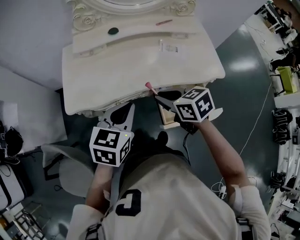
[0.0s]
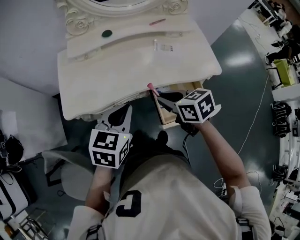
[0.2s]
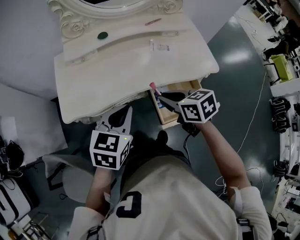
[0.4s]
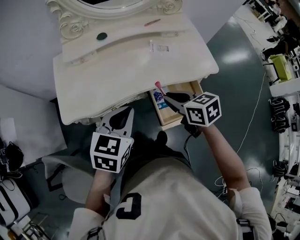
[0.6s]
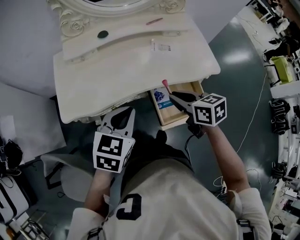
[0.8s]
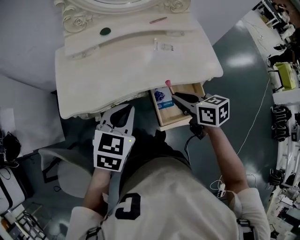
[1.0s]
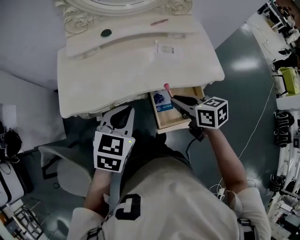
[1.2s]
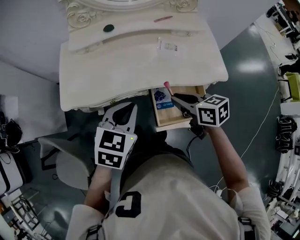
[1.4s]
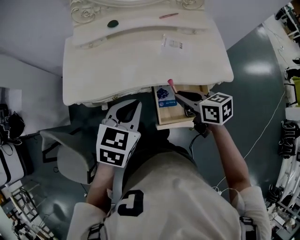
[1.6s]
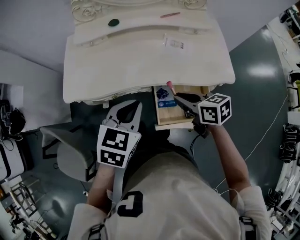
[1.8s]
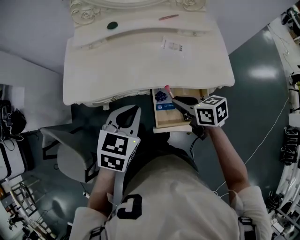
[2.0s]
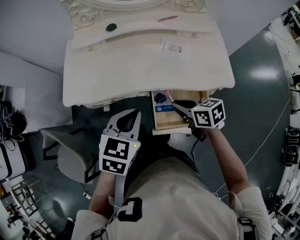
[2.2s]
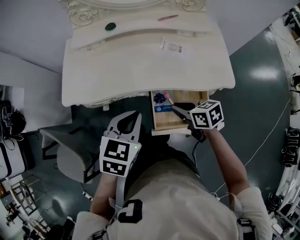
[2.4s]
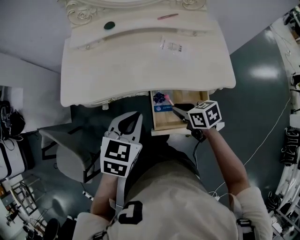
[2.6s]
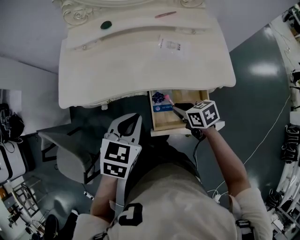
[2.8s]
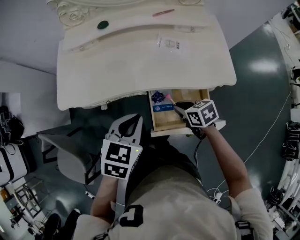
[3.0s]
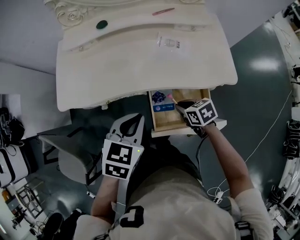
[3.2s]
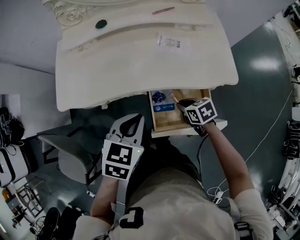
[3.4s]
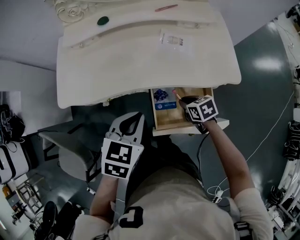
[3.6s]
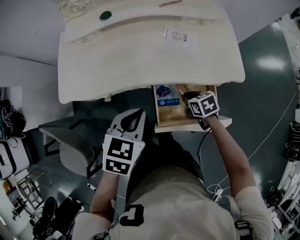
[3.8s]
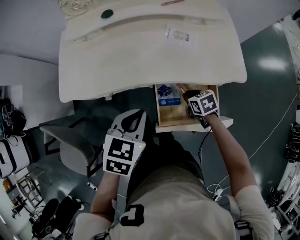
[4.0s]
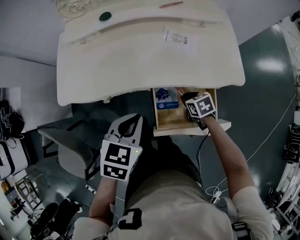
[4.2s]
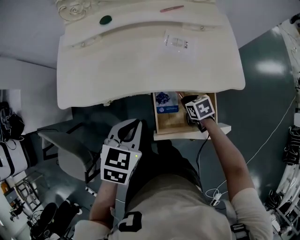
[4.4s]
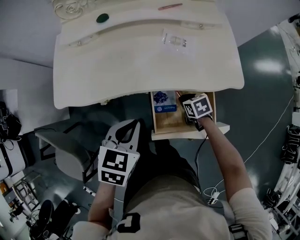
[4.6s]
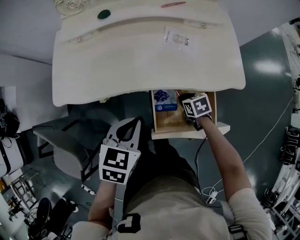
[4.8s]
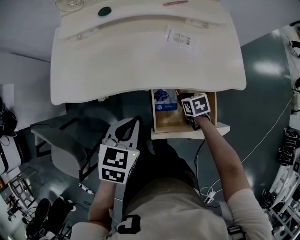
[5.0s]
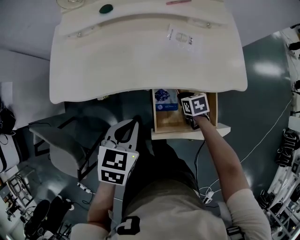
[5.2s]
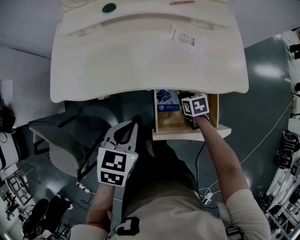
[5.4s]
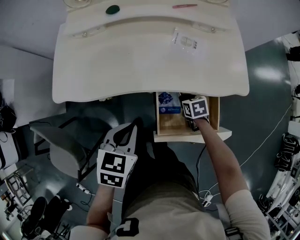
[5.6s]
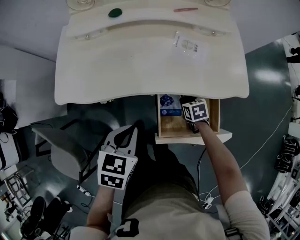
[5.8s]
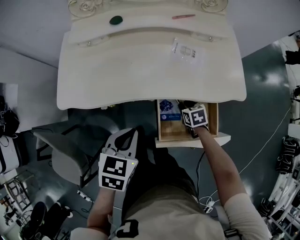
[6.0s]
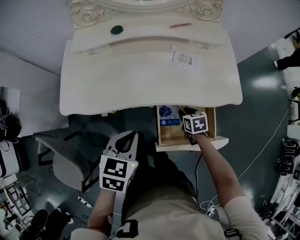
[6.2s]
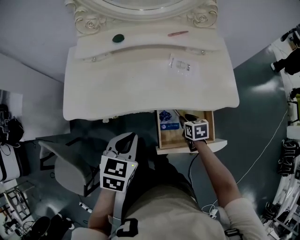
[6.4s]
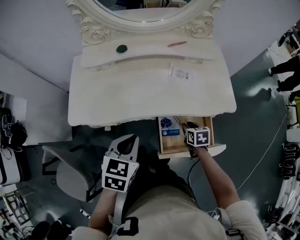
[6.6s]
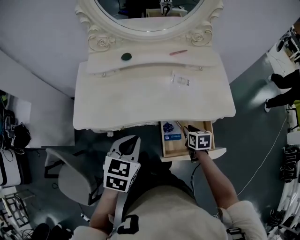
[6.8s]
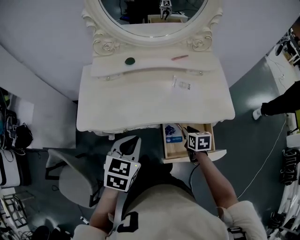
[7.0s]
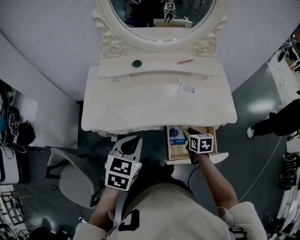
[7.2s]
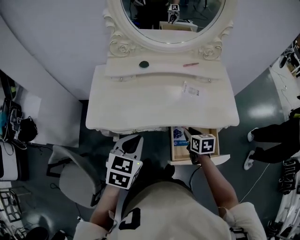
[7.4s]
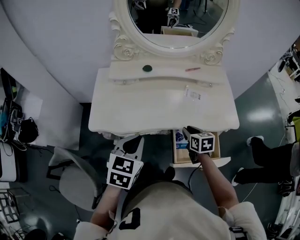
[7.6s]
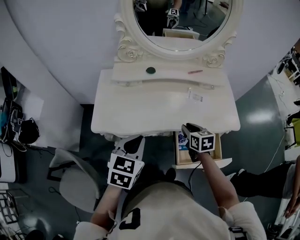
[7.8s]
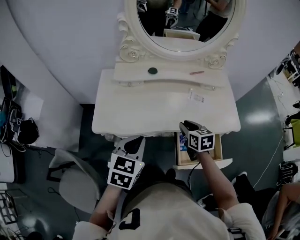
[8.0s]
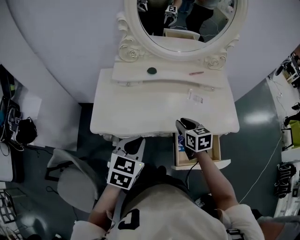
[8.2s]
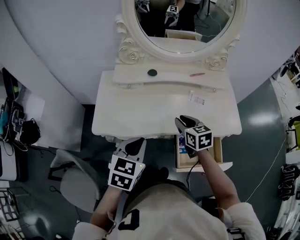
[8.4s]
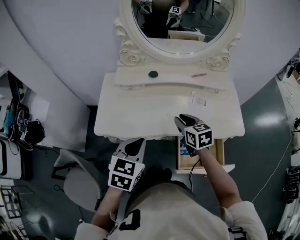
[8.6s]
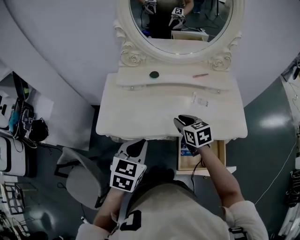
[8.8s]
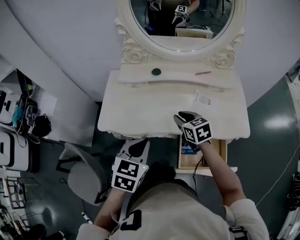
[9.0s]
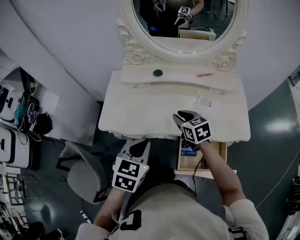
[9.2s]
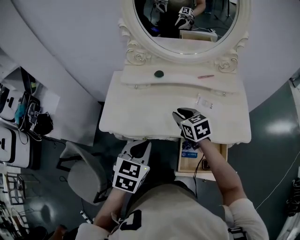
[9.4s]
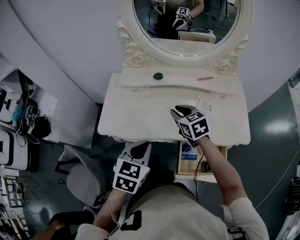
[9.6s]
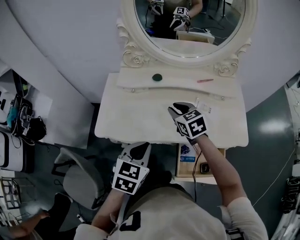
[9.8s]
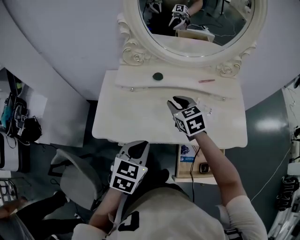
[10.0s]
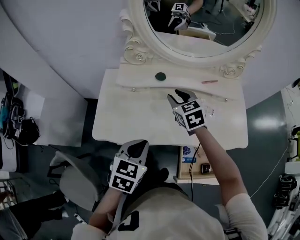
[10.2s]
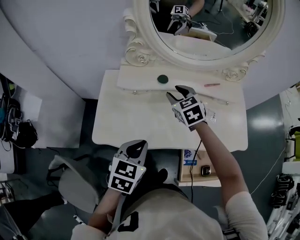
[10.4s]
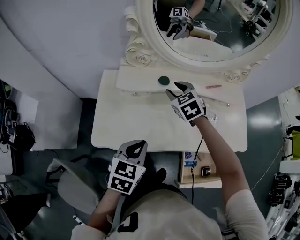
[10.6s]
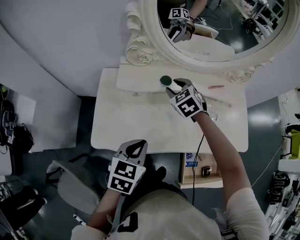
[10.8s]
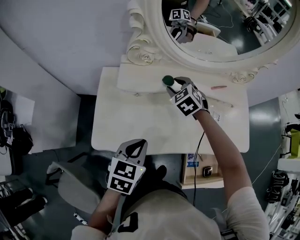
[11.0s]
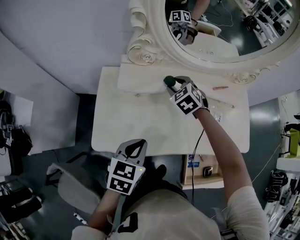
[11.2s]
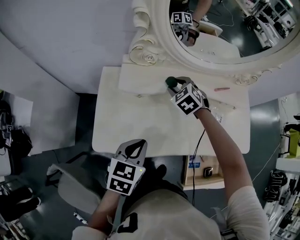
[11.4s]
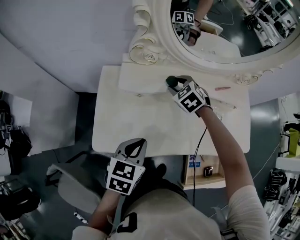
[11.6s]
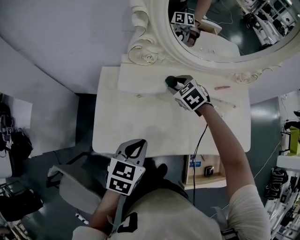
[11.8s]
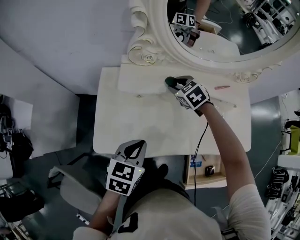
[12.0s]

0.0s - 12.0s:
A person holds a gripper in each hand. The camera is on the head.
0.0s - 1.6s: Both grippers move to the right, roughly 10 cm.
1.6s - 3.0s: The left gripper ends up roughly 5 cm from where it was. The right gripper heads downward, covering roughly 15 cm.
3.0s - 4.4s: The right gripper heads downward, covering roughly 10 cm.
4.4s - 6.0s: The grippers make only small movements.
6.0s - 7.6s: Both grippers travel together upward and to the left, roughly 15 cm.
7.6s - 9.0s: The right gripper shifts about 15 cm upward, to the left and forward, and swivels roughly 20 degrees.
9.0s - 10.4s: The left gripper is displaced forward and to the left by roughly 10 cm. Meanwhile the right gripper shifts some 20 cm forward, and changes its angle by roughly 20 degrees.
10.4s - 12.0s: The right gripper shifts some 10 cm forward and downward. The left gripper is displaced forward and to the left by about 10 cm.

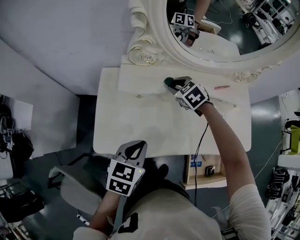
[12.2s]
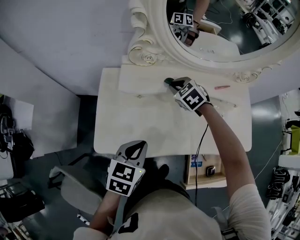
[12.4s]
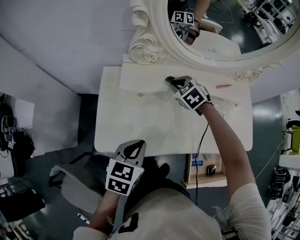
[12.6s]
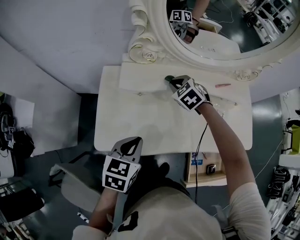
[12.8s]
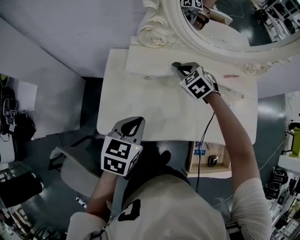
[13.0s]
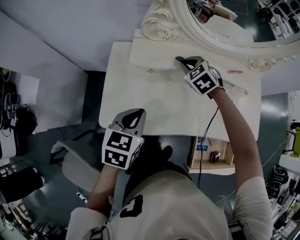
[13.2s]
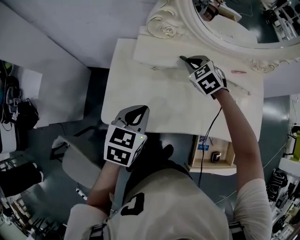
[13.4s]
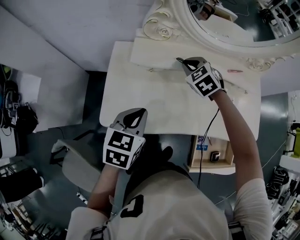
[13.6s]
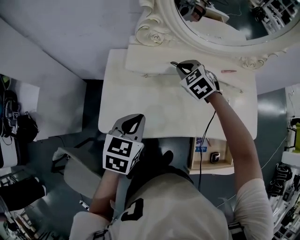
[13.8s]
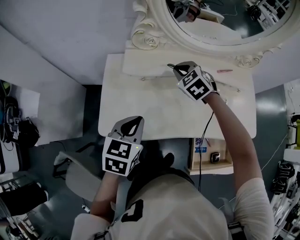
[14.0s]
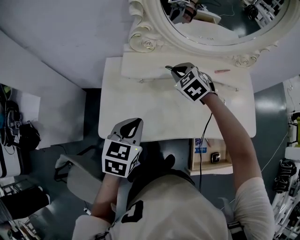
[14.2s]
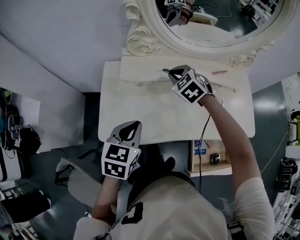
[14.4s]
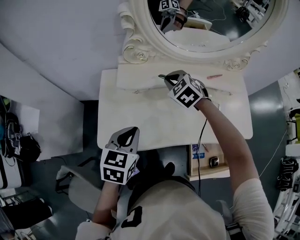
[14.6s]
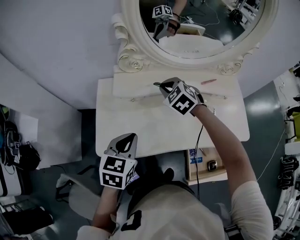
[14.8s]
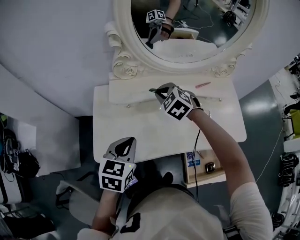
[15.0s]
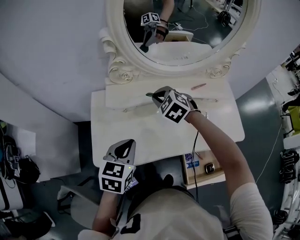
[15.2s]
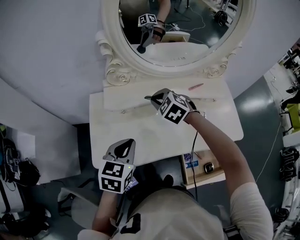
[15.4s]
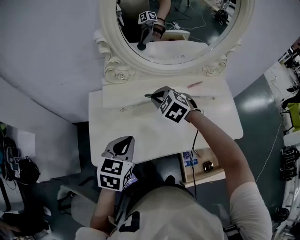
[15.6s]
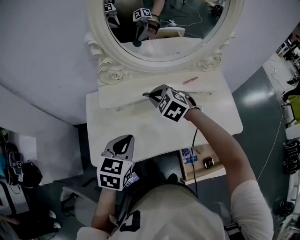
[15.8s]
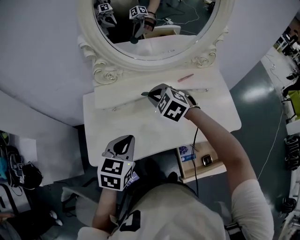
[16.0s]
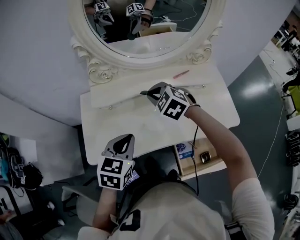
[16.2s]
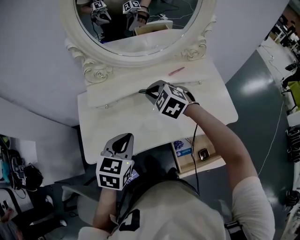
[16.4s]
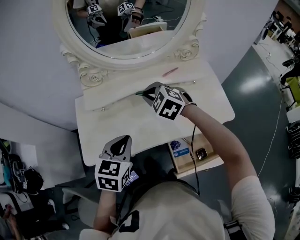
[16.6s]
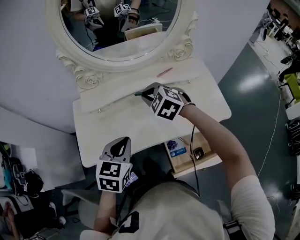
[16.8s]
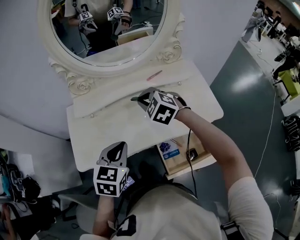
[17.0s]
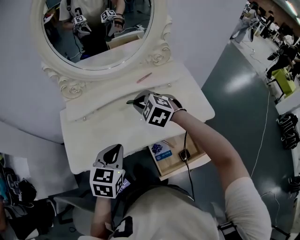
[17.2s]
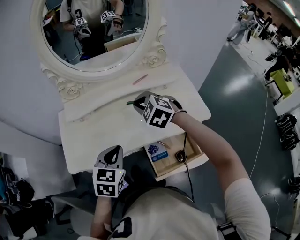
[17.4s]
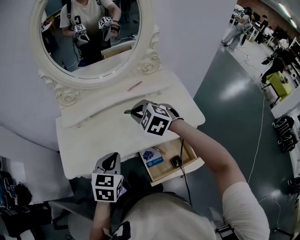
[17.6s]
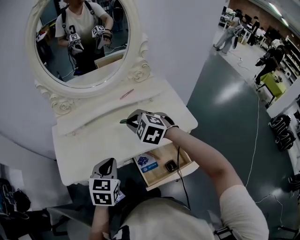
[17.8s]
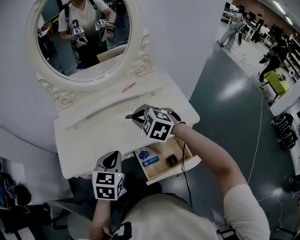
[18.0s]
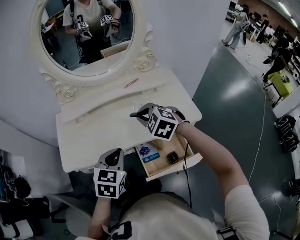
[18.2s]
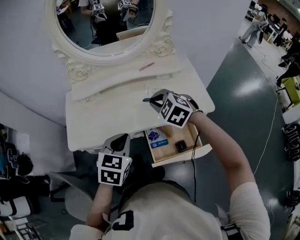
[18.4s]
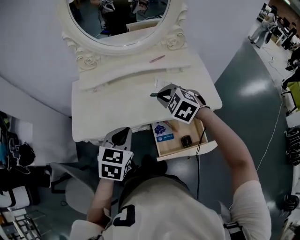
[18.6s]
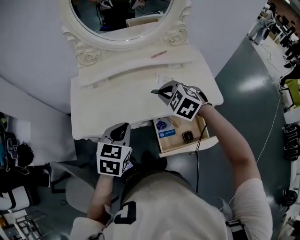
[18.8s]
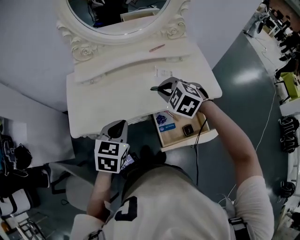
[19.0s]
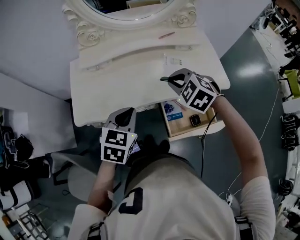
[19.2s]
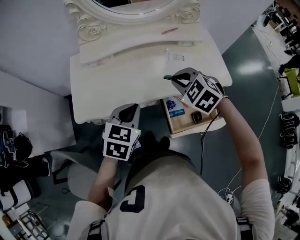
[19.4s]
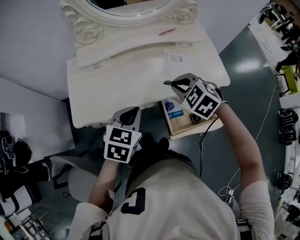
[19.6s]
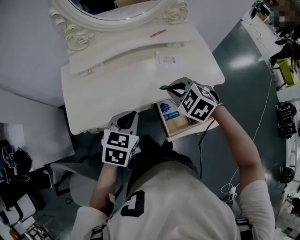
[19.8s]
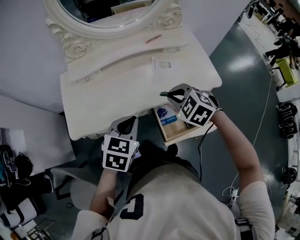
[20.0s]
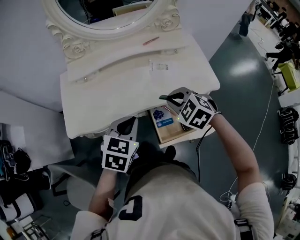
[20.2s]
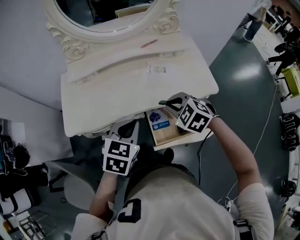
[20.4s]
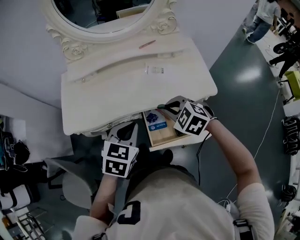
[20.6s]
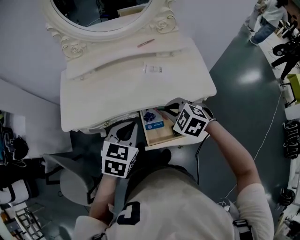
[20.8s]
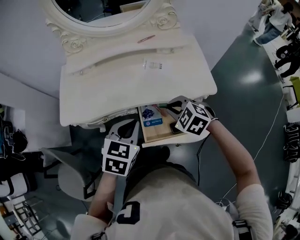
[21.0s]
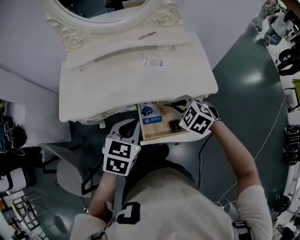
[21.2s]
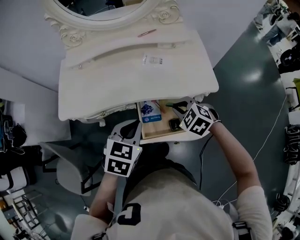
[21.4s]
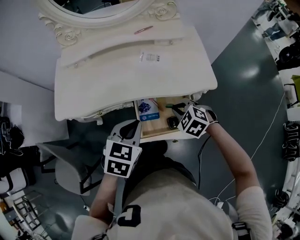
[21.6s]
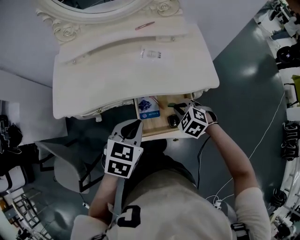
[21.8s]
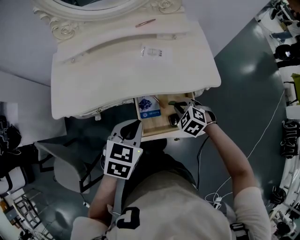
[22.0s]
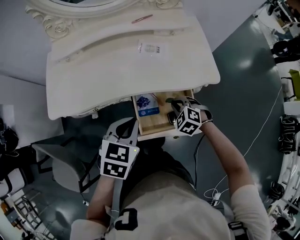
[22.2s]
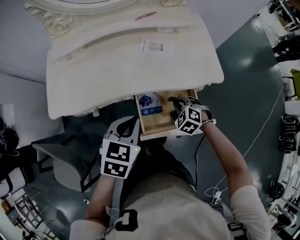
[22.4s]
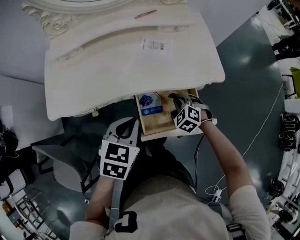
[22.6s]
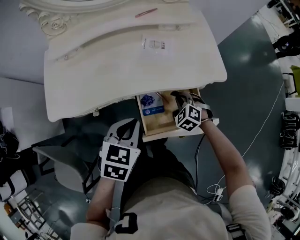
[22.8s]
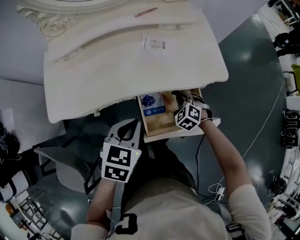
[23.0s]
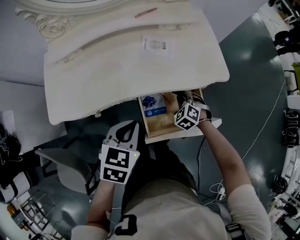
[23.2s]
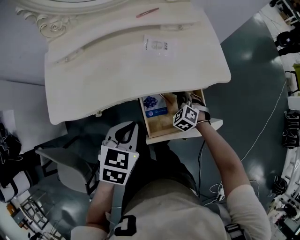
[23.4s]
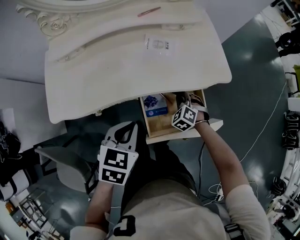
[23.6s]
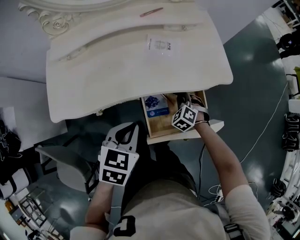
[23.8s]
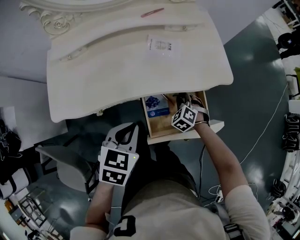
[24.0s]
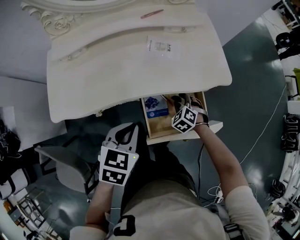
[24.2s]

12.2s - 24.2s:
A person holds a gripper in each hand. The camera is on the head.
12.2s - 13.8s: The right gripper shifts by approximately 5 cm.
13.8s - 15.2s: The right gripper changes place by approximately 5 cm.
15.2s - 16.6s: The left gripper moves to the right, roughly 10 cm; the right gripper moves to the right and backward, about 10 cm.
16.6s - 18.2s: The right gripper goes approximately 20 cm backward and to the right. Meanwhile the left gripper shifts some 15 cm to the right and backward.
18.2s - 19.8s: The right gripper travels downward, backward and to the left by some 10 cm; the left gripper travels to the left by roughly 10 cm.
19.8s - 21.2s: The left gripper goes some 15 cm to the right and backward. The right gripper is displaced to the right, backward and downward by some 15 cm.
21.2s - 22.6s: The left gripper moves downward, approximately 5 cm. The right gripper shifts approximately 15 cm downward.
22.6s - 24.2s: The right gripper shifts by roughly 5 cm, and opens its fingers.
